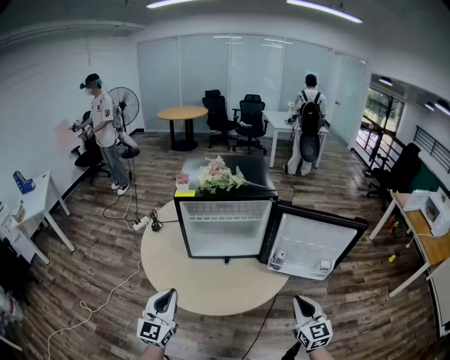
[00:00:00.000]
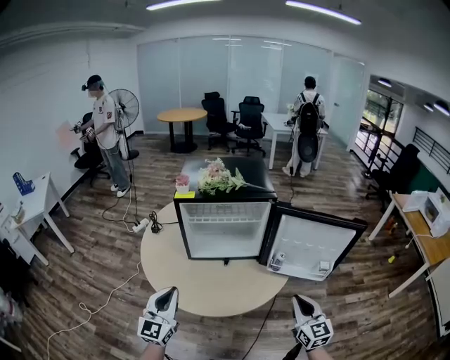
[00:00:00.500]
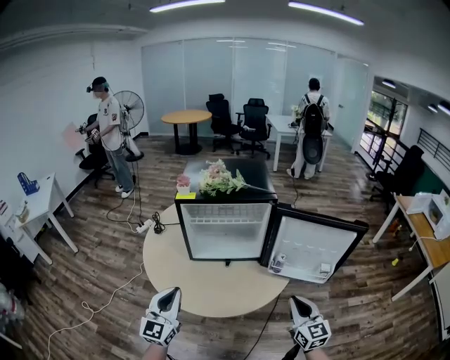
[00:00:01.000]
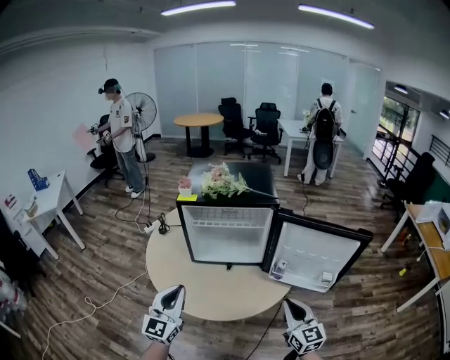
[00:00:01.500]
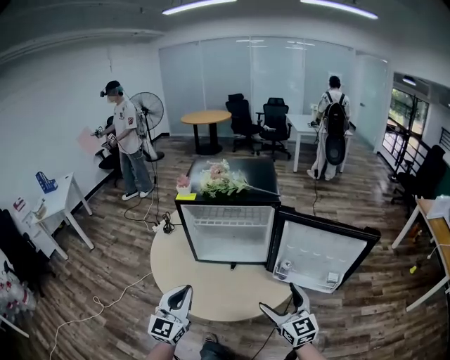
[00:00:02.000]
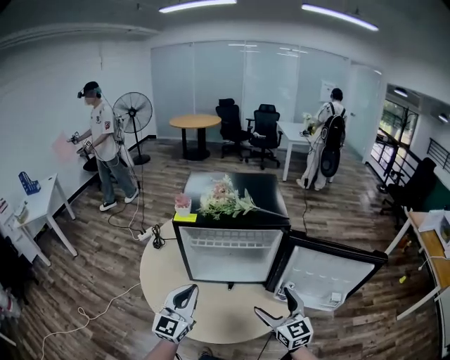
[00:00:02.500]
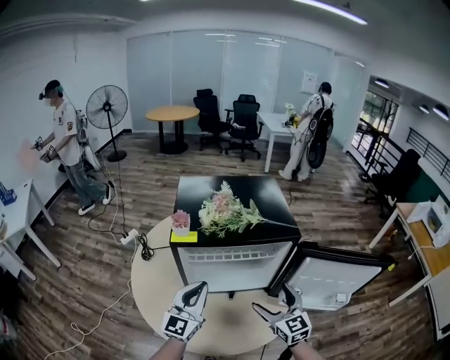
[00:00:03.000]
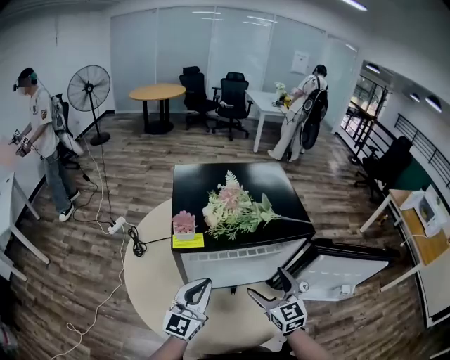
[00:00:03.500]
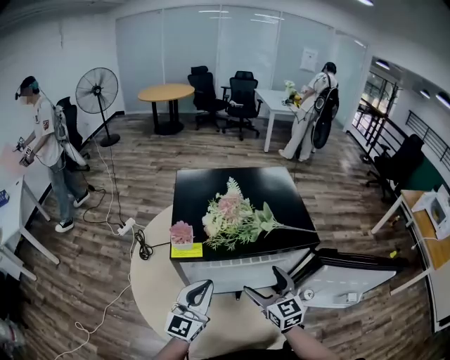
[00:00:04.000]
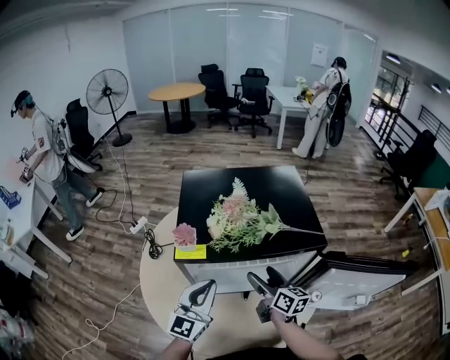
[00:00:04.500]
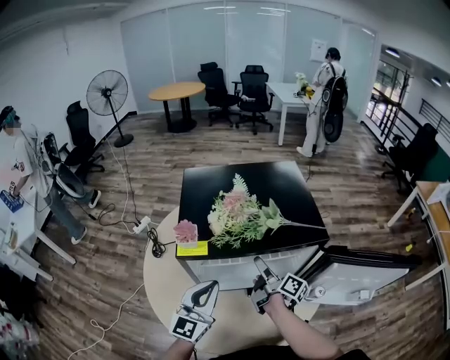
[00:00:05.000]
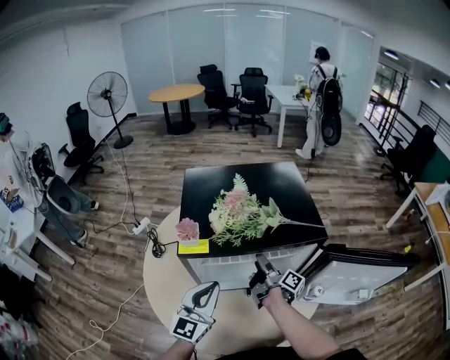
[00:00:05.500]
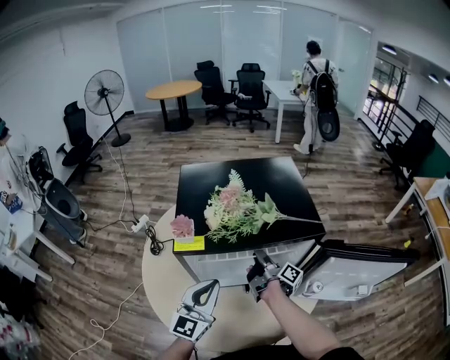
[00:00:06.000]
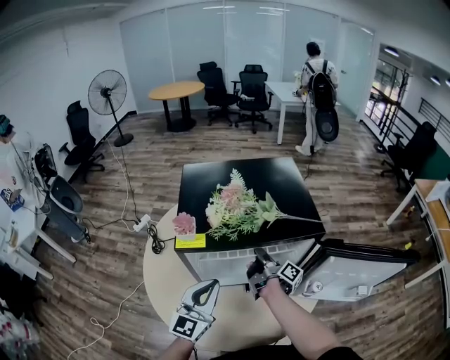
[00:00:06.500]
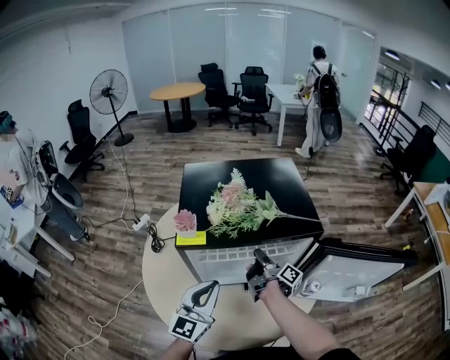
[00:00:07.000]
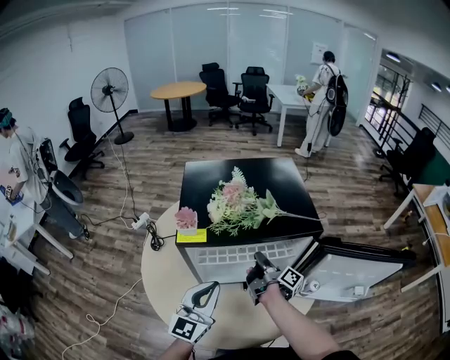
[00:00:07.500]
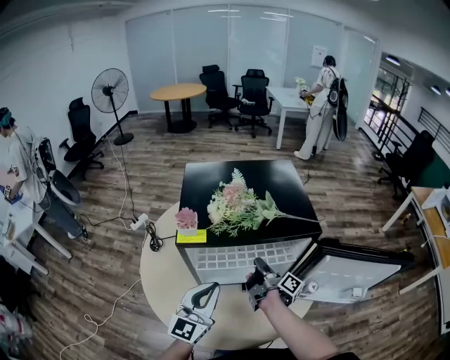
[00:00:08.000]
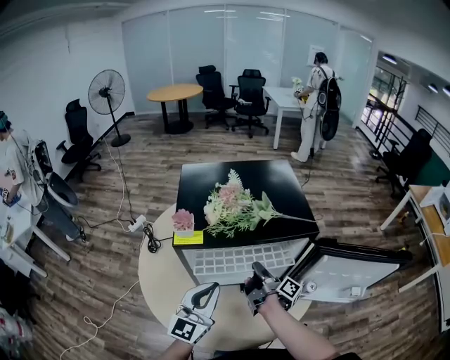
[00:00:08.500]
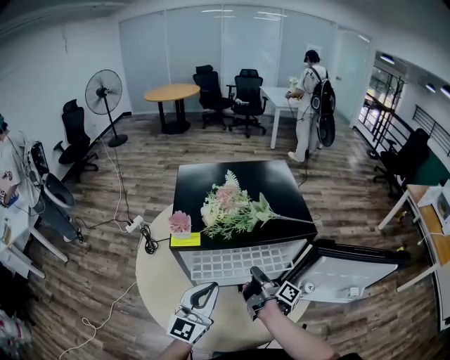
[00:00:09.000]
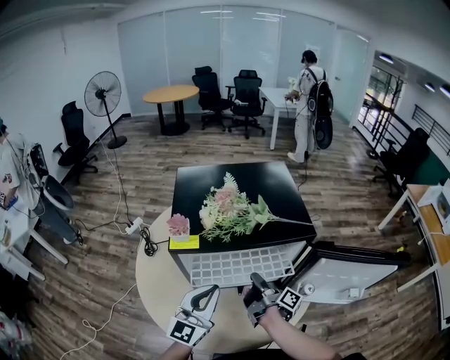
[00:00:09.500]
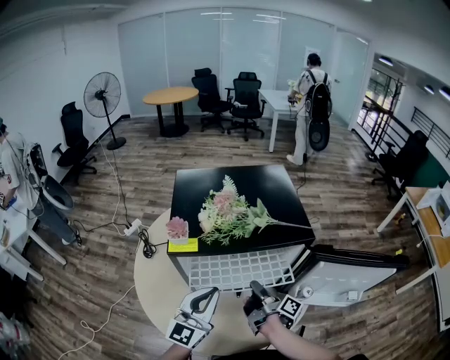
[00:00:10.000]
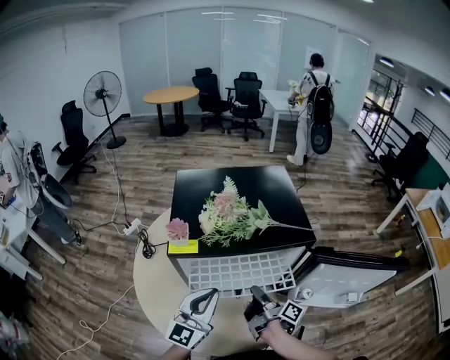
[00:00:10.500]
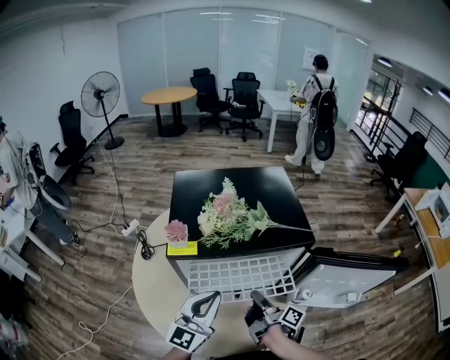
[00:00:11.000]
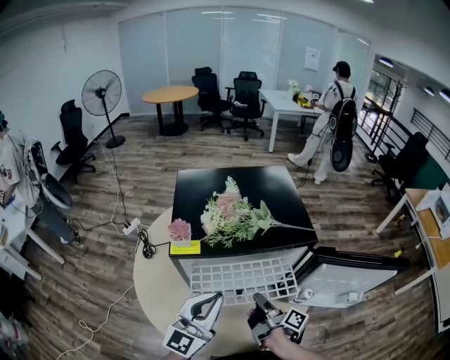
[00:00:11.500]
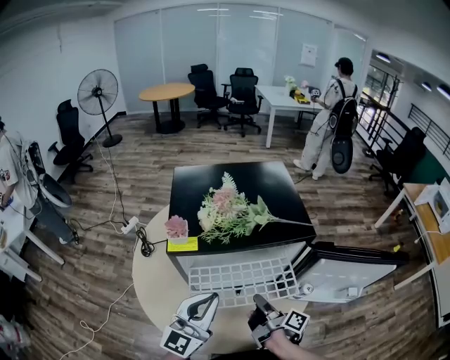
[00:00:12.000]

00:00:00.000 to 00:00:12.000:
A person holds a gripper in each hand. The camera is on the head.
00:00:00.000 to 00:00:02.000: The right gripper heads forward, covering approximately 5 cm, and opens up. Meanwhile the left gripper shifts about 10 cm to the right.
00:00:02.000 to 00:00:04.000: The right gripper shifts about 35 cm forward and to the left; the left gripper heads forward, covering about 30 cm.
00:00:04.000 to 00:00:06.000: The right gripper travels forward and downward by about 10 cm, rotates around the line of its fingers by approximately 90 degrees, clockwise from behind, and closes its fingers.
00:00:06.000 to 00:00:08.000: The grippers move only a little.
00:00:08.000 to 00:00:10.000: The right gripper shifts about 5 cm backward.
00:00:10.000 to 00:00:12.000: The right gripper heads backward, covering about 5 cm.

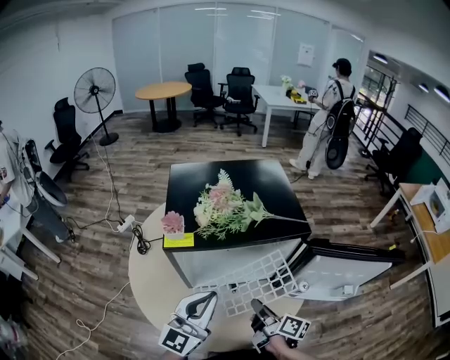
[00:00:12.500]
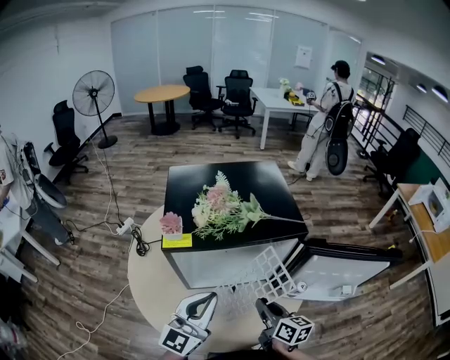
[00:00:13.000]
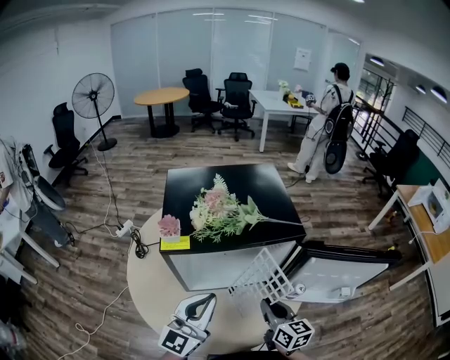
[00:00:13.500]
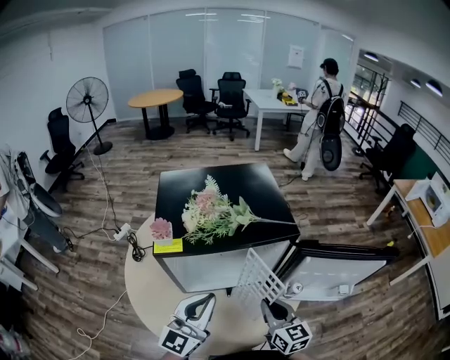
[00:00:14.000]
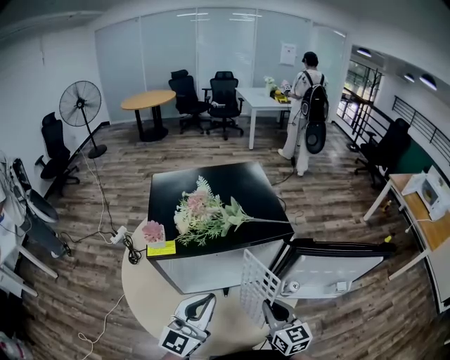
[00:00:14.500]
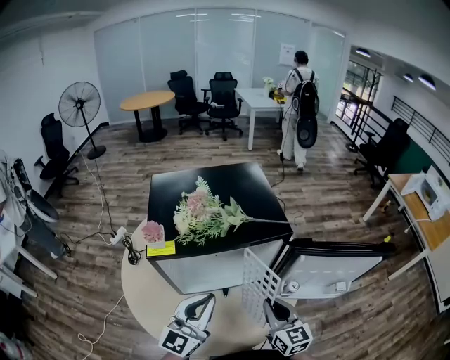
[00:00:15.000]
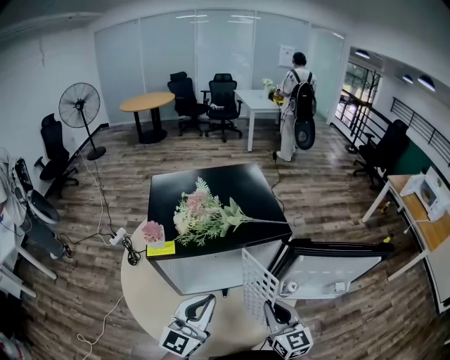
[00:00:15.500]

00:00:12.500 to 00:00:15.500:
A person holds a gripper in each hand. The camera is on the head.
00:00:12.500 to 00:00:14.000: The right gripper is displaced to the right by some 5 cm, and twists about 60 degrees counterclockwise, seen from behind.
00:00:14.000 to 00:00:15.500: The grippers move only a little.

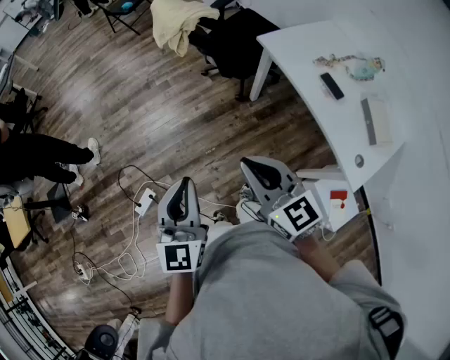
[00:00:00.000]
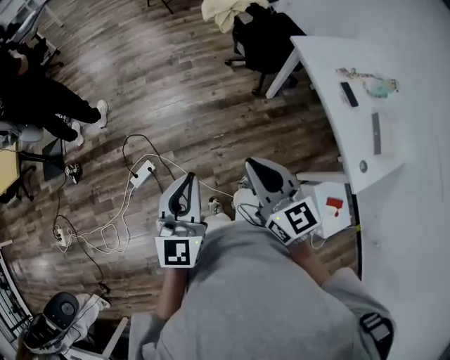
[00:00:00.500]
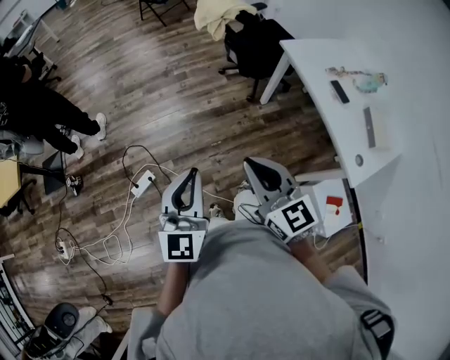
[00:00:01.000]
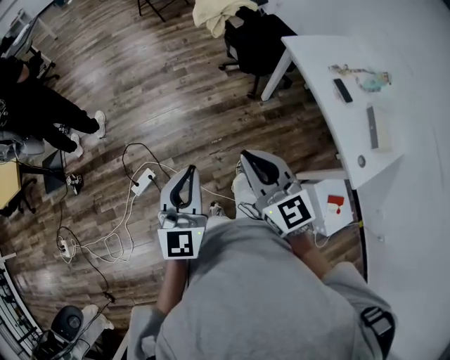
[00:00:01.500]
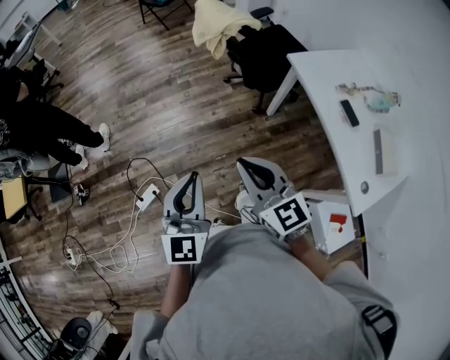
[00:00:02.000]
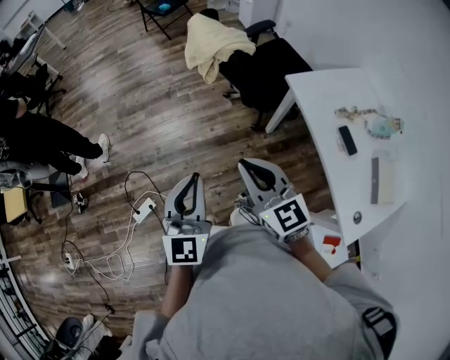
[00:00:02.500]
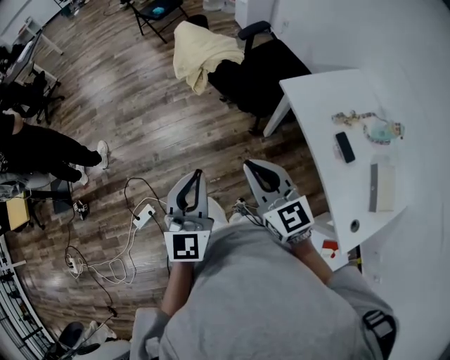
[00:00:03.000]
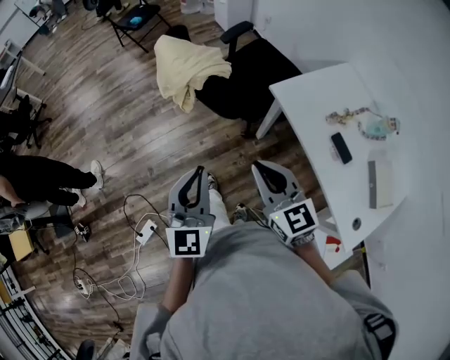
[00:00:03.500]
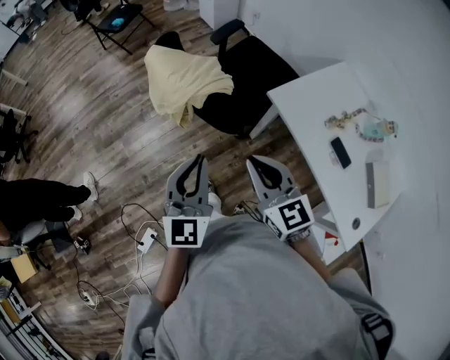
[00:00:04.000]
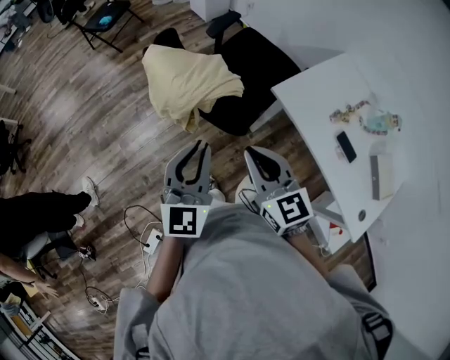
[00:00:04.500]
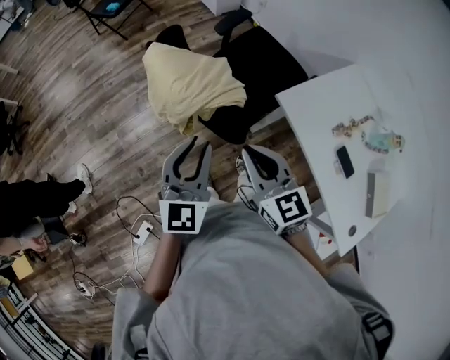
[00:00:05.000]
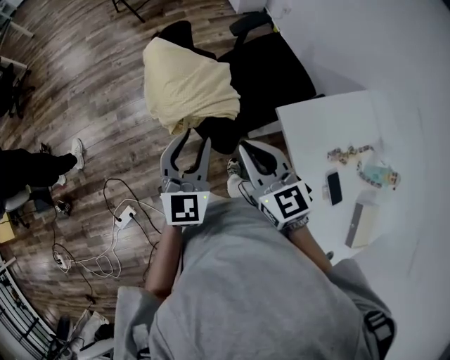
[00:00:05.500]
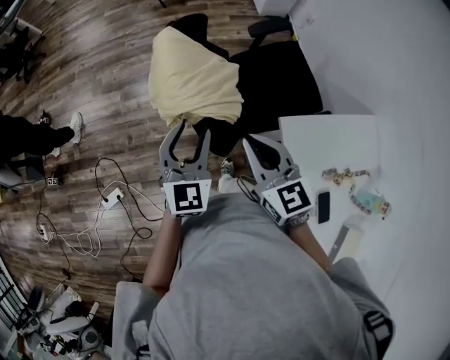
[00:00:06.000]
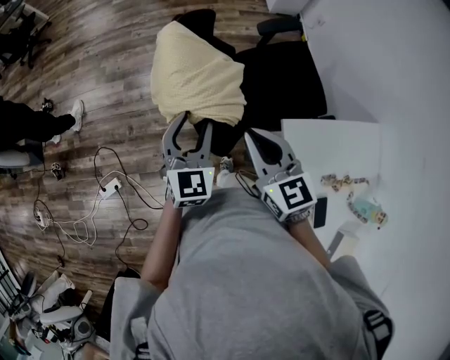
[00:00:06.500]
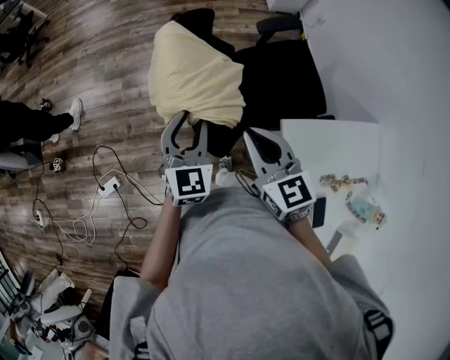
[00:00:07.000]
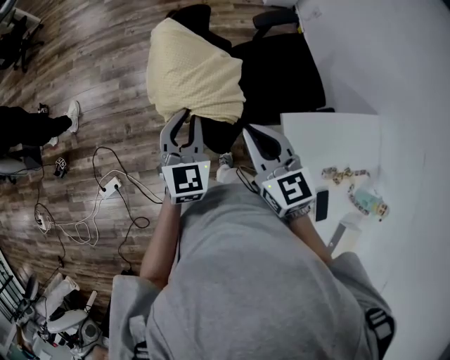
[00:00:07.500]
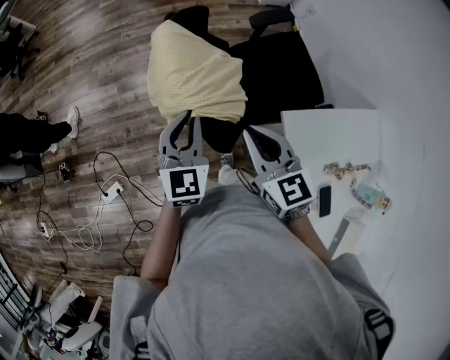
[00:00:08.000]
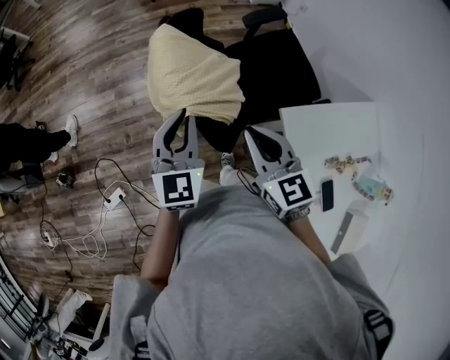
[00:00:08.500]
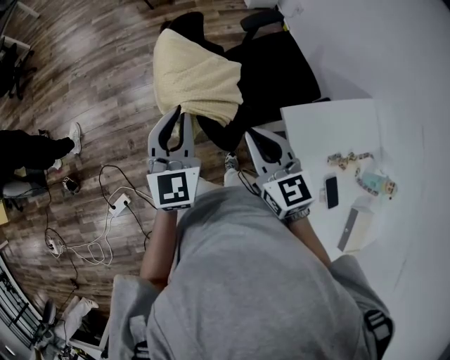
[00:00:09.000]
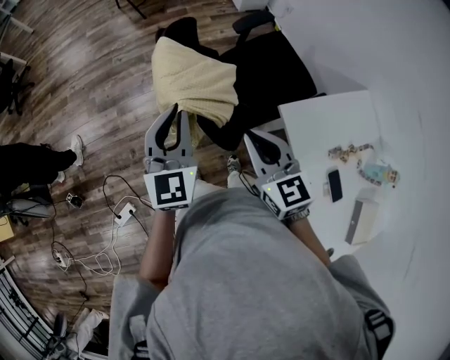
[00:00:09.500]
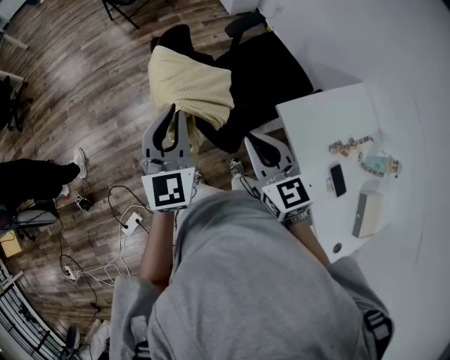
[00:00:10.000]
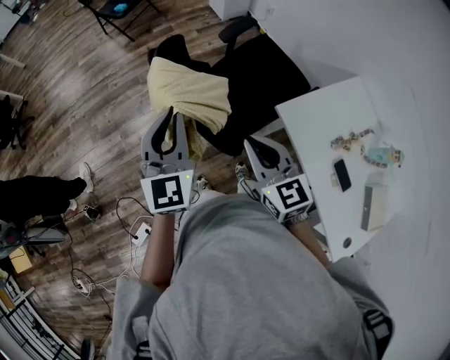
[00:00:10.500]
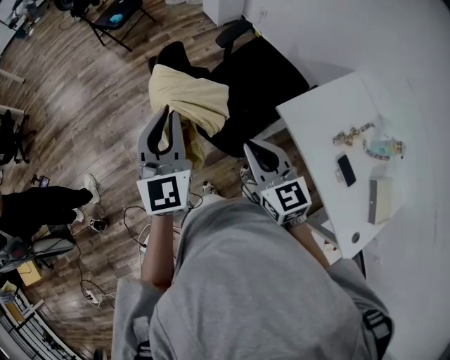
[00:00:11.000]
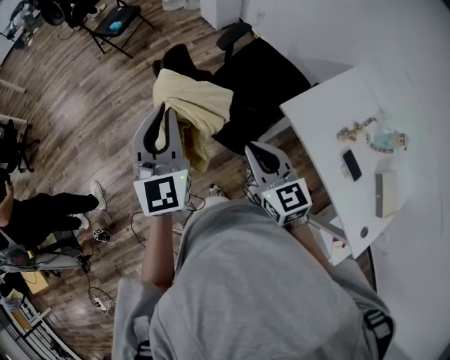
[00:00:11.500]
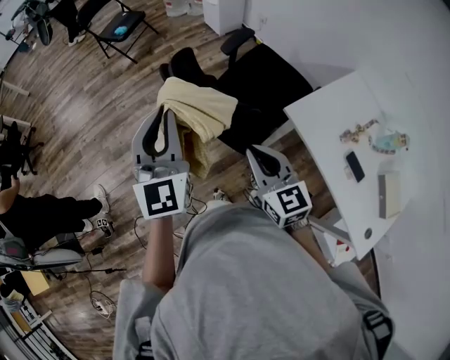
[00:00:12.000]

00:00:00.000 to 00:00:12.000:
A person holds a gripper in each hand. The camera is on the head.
00:00:00.000 to 00:00:02.000: Both grippers travel together to the left, some 5 cm. The right gripper reaches roughly 10 cm backward, then returns, while the left gripper travels backward and back again, about 10 cm each way.
00:00:02.000 to 00:00:04.000: The two grippers go about 35 cm forward and to the right.
00:00:04.000 to 00:00:06.000: The left gripper ends up approximately 15 cm from where it was, swivels roughly 30 degrees, and opens up, while the right gripper changes place by about 15 cm, and changes its angle by some 20 degrees.
00:00:06.000 to 00:00:08.000: The left gripper closes its fingers.
00:00:08.000 to 00:00:10.000: The left gripper is displaced upward by roughly 10 cm.
00:00:10.000 to 00:00:12.000: The left gripper is displaced upward and to the left by roughly 10 cm; the right gripper shifts about 5 cm to the left.
